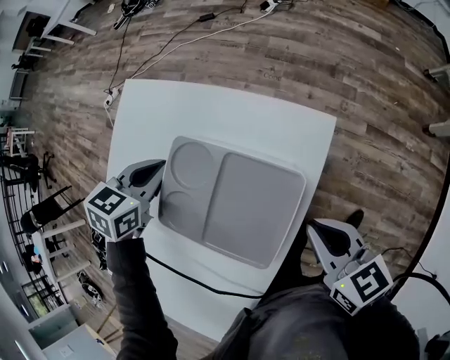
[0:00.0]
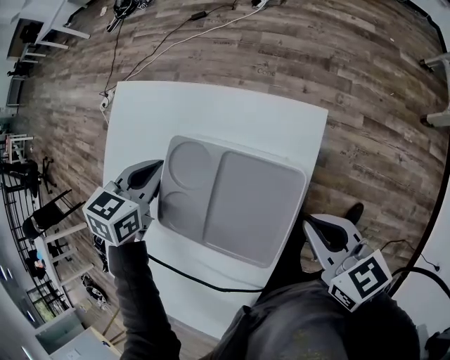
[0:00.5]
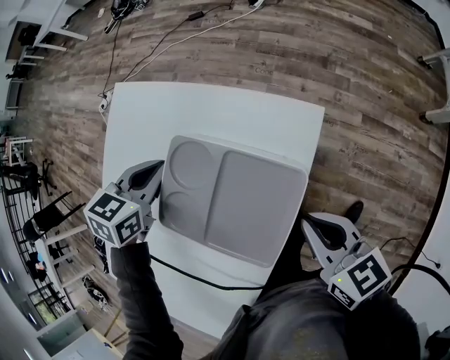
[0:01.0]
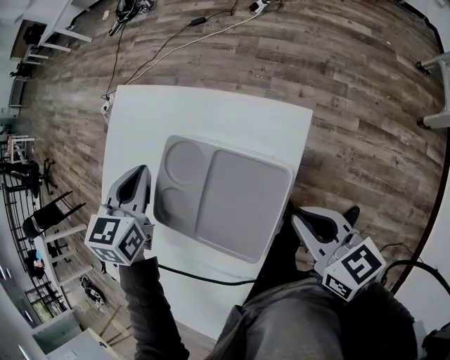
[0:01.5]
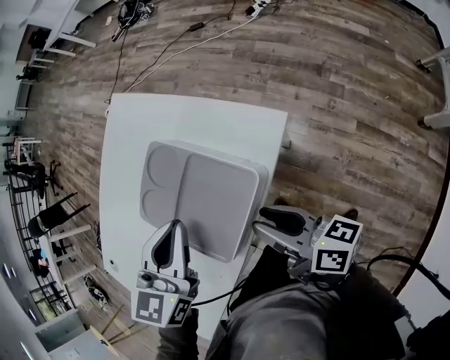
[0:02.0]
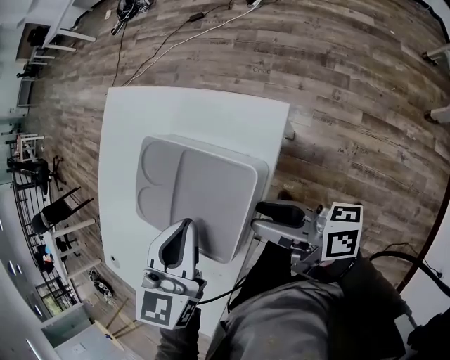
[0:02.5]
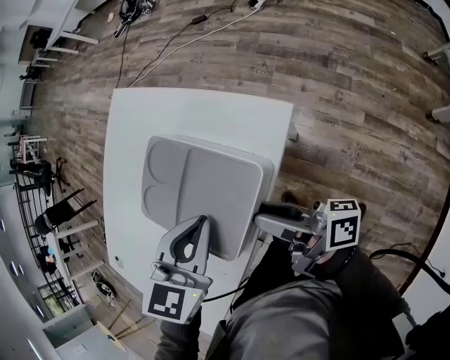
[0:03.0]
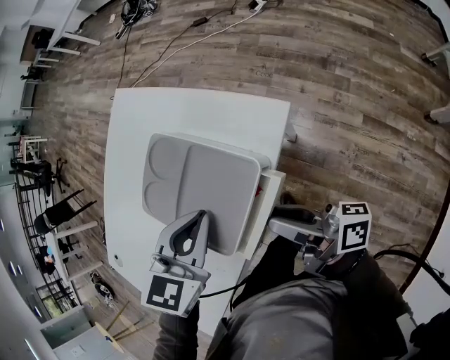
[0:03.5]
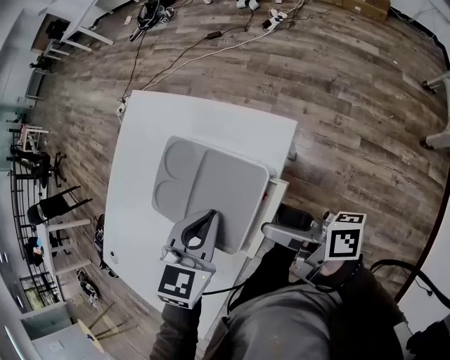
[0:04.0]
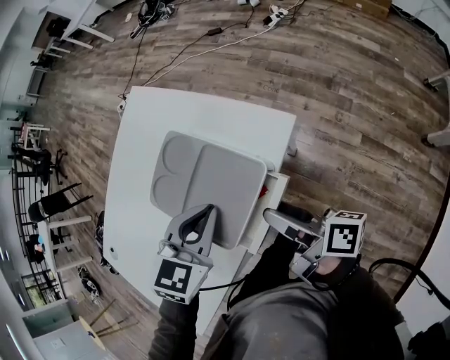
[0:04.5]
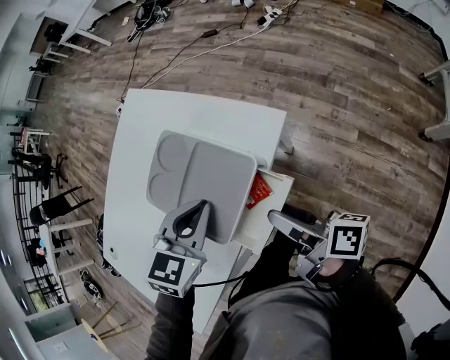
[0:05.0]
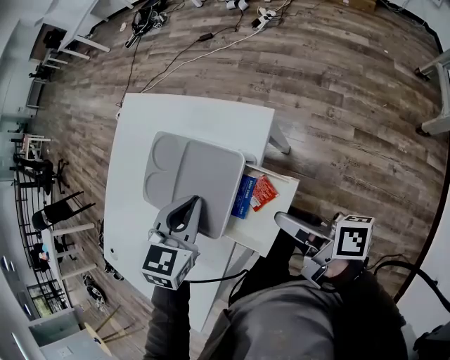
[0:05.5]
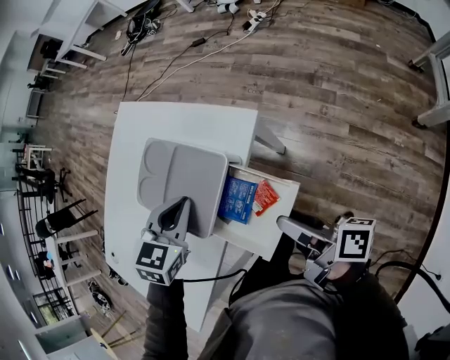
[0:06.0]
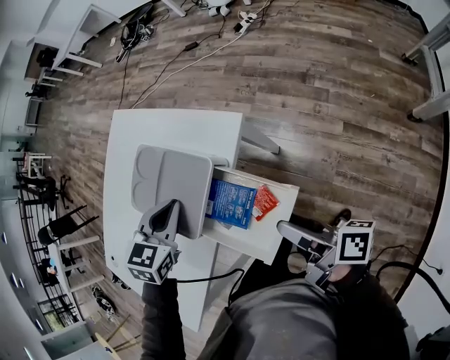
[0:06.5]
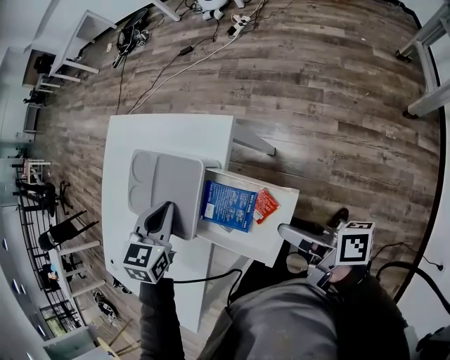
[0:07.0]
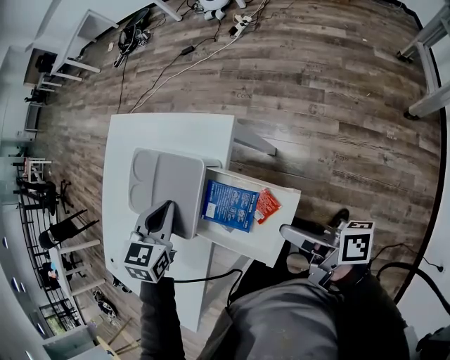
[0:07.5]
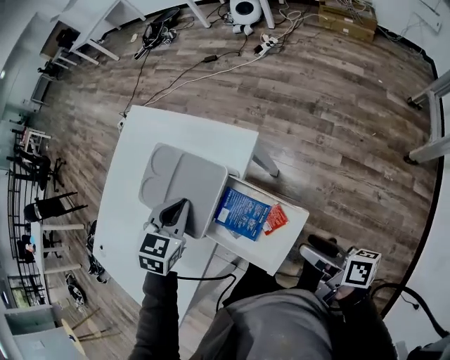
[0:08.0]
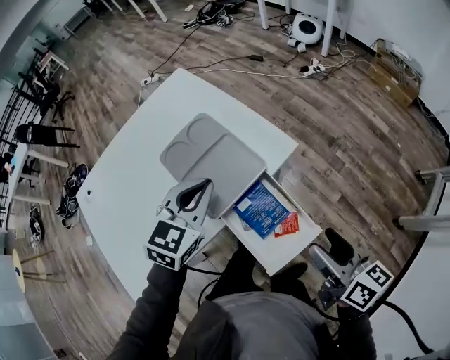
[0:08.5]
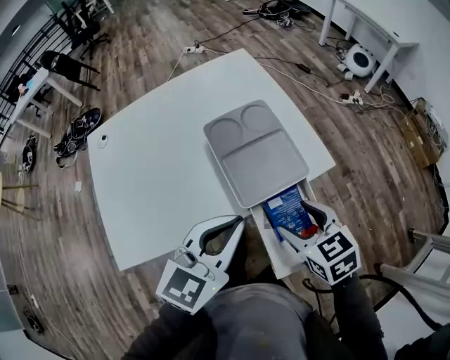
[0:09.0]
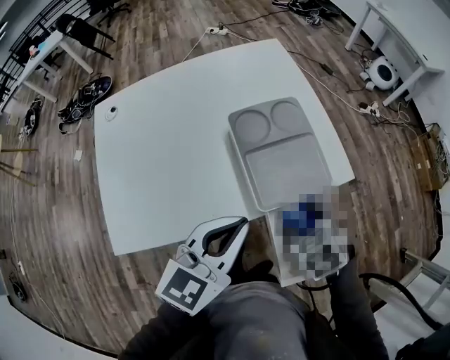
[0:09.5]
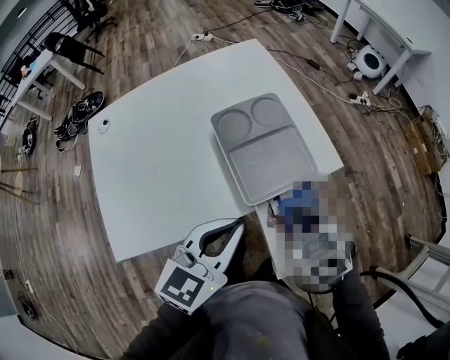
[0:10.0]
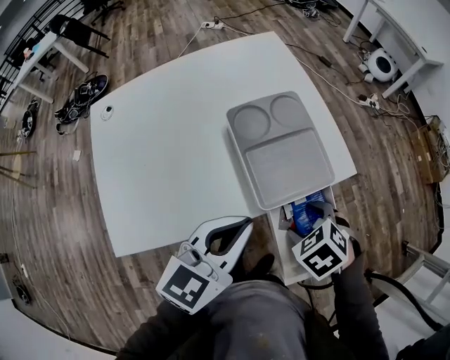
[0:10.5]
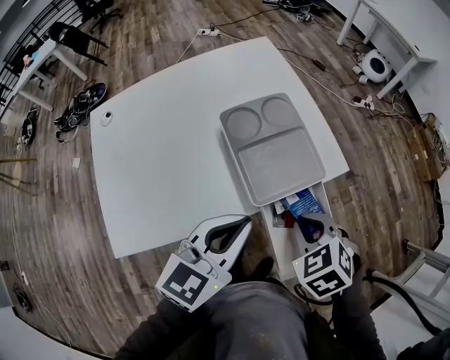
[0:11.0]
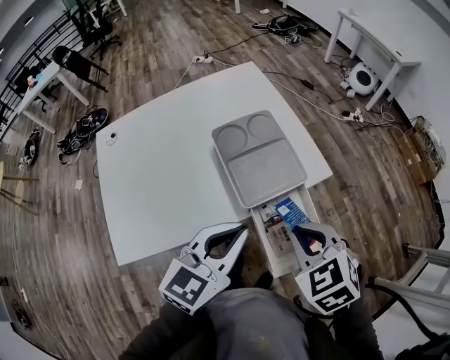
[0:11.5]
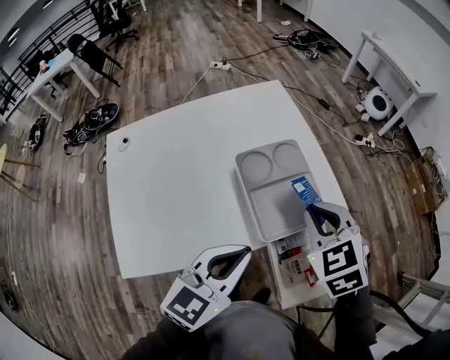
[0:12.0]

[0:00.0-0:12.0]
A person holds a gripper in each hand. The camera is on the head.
0:00.0 to 0:02.0: The right gripper turns by some 40 degrees, and opens its fingers; the left gripper goes some 20 cm backward, to the right and upward, and changes its angle by roughly 30 degrees.
0:02.0 to 0:04.0: The right gripper opens. The left gripper moves about 5 cm.
0:04.0 to 0:06.0: The right gripper is displaced to the right and backward by about 10 cm.
0:06.0 to 0:08.0: The right gripper moves backward and to the right, approximately 10 cm.
0:08.0 to 0:10.0: The right gripper moves forward and to the left, roughly 20 cm, twists approximately 90 degrees counterclockwise, seen from behind, and closes; the left gripper goes about 15 cm backward and upward, and changes its angle by roughly 40 degrees.
0:10.0 to 0:12.0: The right gripper heads upward and forward, covering approximately 15 cm, and opens, then closes once more.

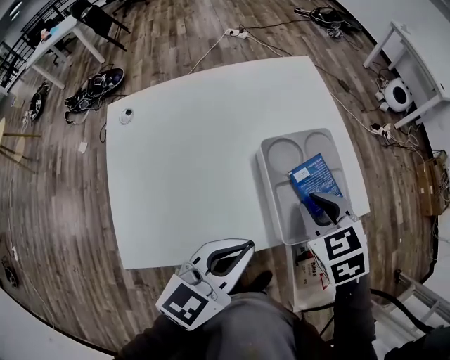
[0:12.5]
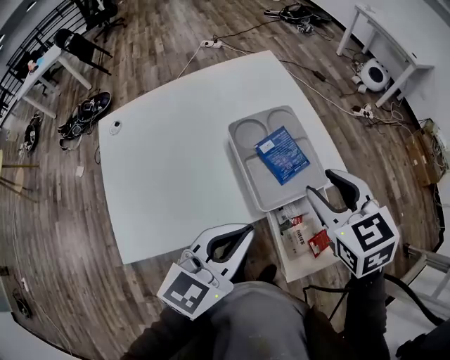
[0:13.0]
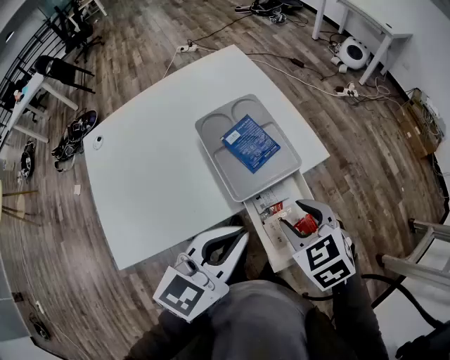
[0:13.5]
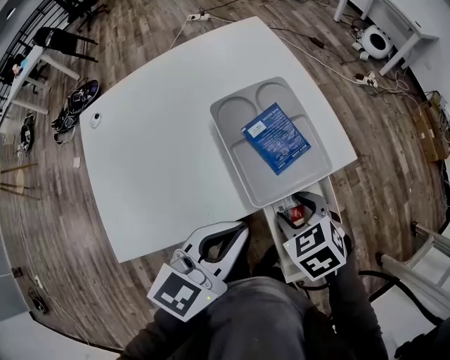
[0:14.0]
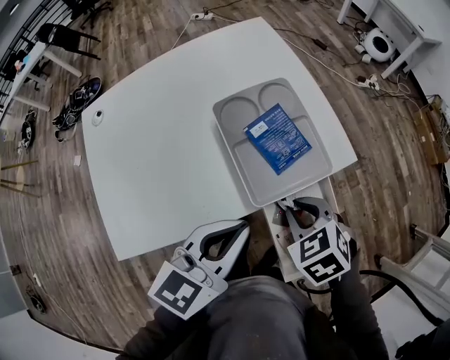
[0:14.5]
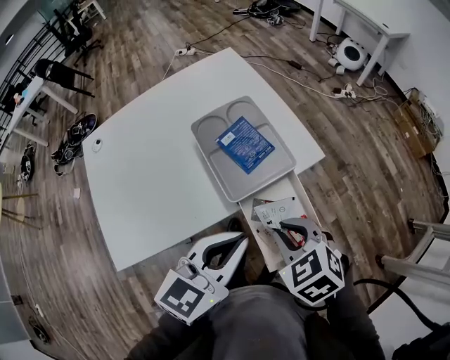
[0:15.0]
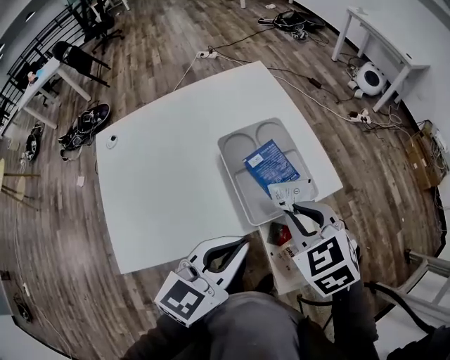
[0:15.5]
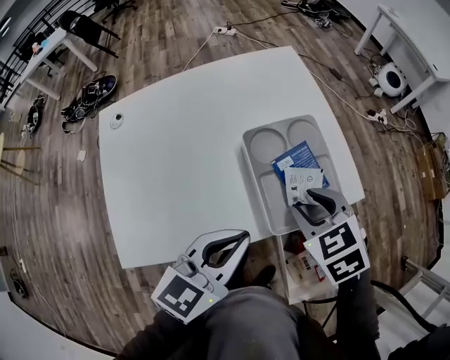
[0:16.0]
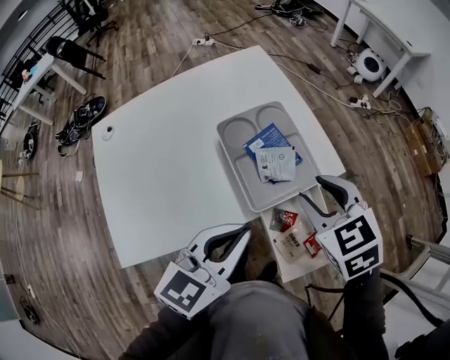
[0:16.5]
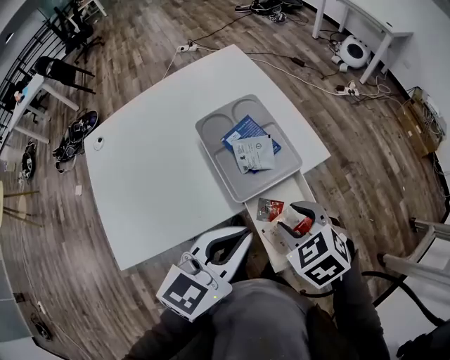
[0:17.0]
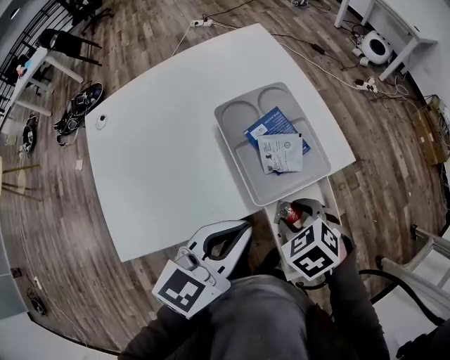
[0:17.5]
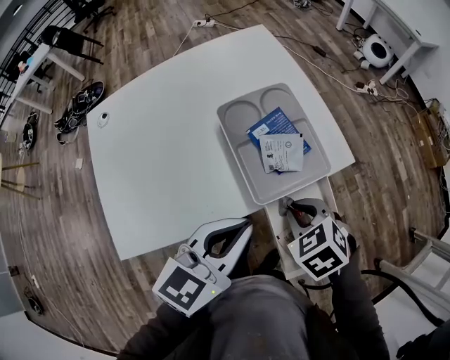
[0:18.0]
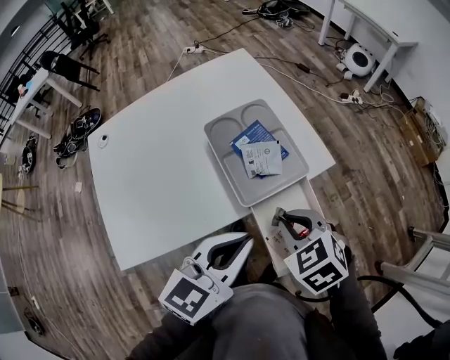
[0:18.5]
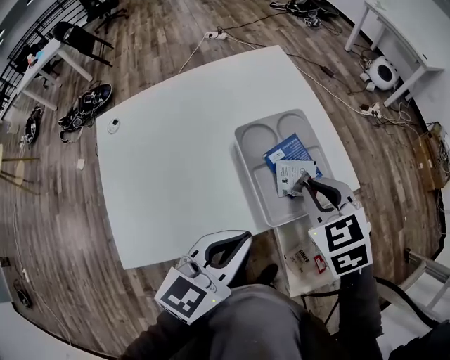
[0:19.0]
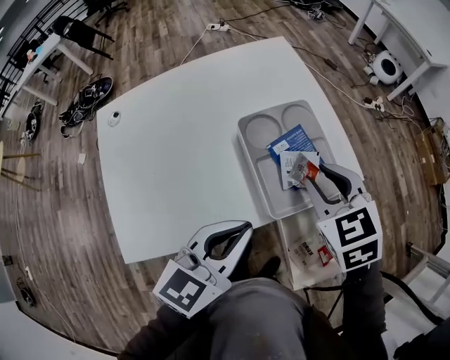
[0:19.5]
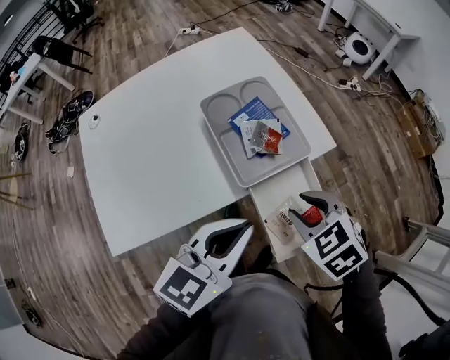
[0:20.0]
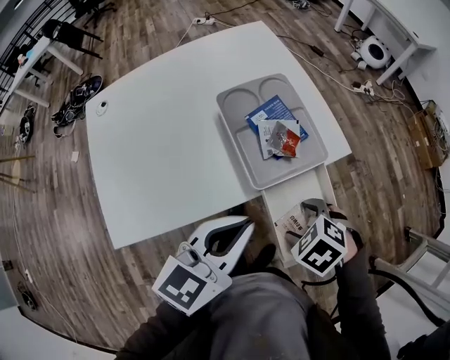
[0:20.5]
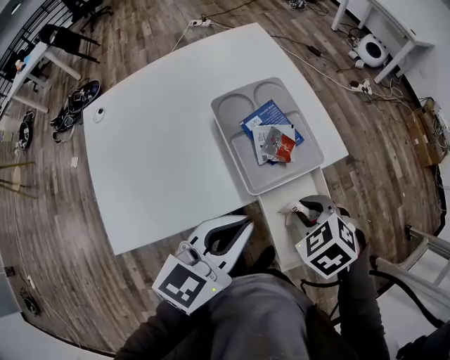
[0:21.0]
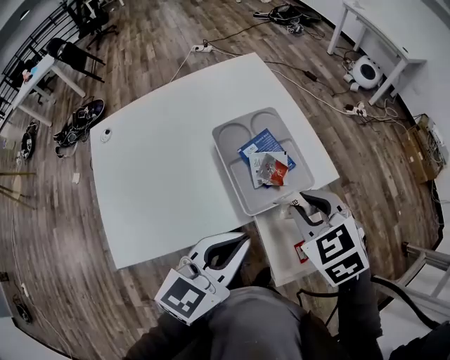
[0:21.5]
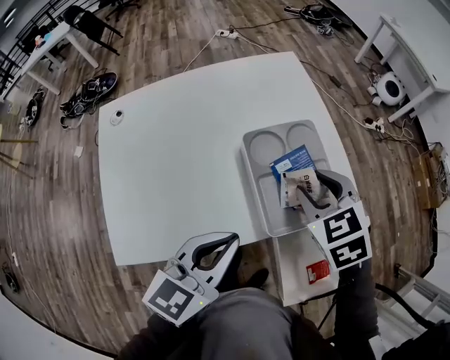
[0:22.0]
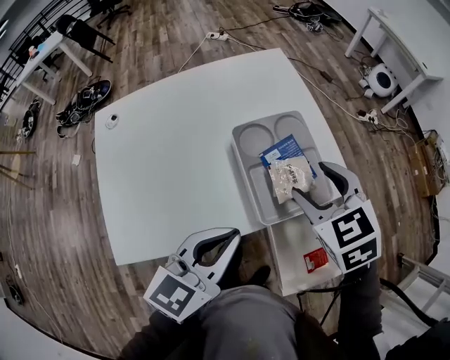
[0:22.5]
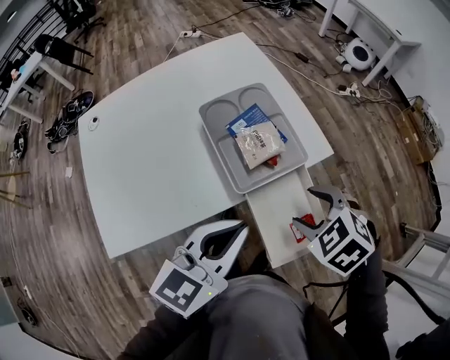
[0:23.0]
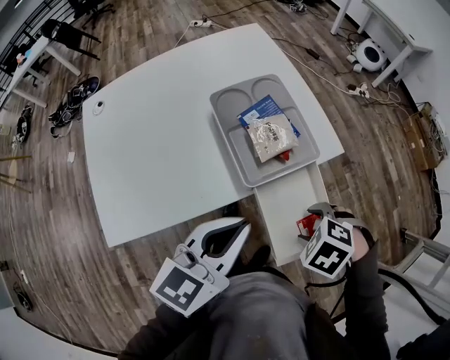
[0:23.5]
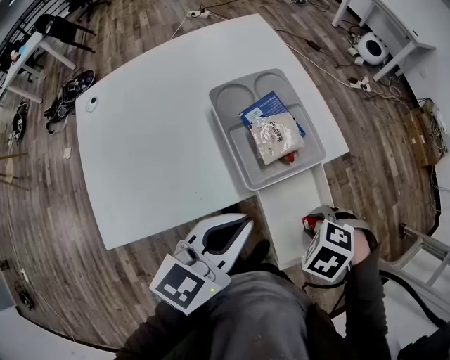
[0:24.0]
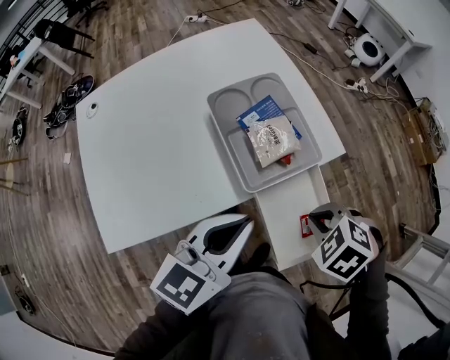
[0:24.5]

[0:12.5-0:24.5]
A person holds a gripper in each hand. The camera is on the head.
0:12.5 to 0:14.5: The right gripper goes roughly 15 cm backward, to the right and downward, and opens and closes again; the left gripper shifts roughly 5 cm to the right.
0:14.5 to 0:16.5: The right gripper travels upward by roughly 10 cm, reaches some 10 cm forward, then returns, and opens; the left gripper goes left and right, roughly 10 cm each way, reversing 2 times.
0:16.5 to 0:18.5: The right gripper heads backward and downward, covering about 10 cm, and closes up.
0:18.5 to 0:20.5: The right gripper shifts some 10 cm downward, swivels approximately 30 degrees, and opens.
0:20.5 to 0:22.5: The left gripper moves some 5 cm. The right gripper shifts by roughly 25 cm, angles its fingers upward, by roughly 30 degrees, and closes, then reopens.
0:22.5 to 0:24.5: The left gripper changes place by approximately 5 cm. Meanwhile the right gripper shifts by roughly 20 cm, angles its fingers downward, by some 30 degrees, and closes up.

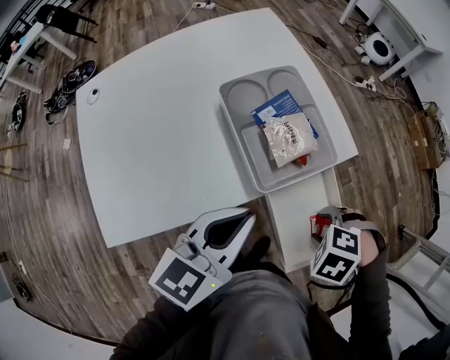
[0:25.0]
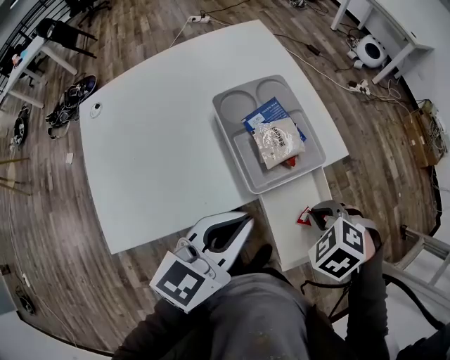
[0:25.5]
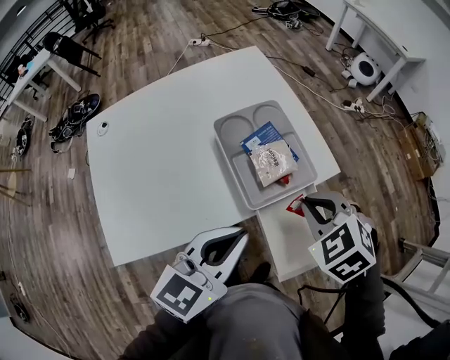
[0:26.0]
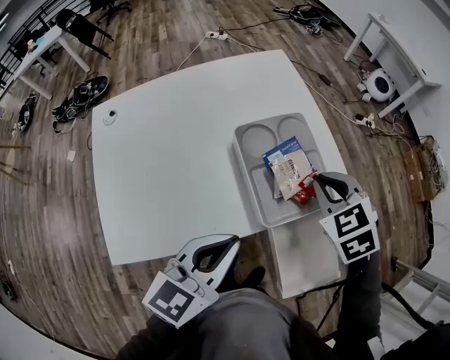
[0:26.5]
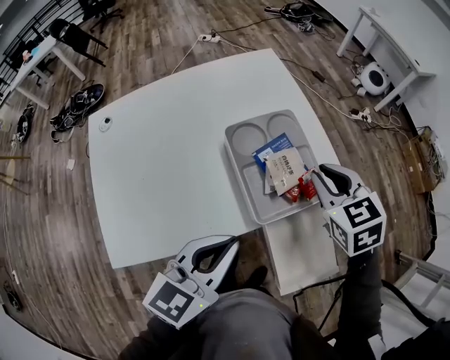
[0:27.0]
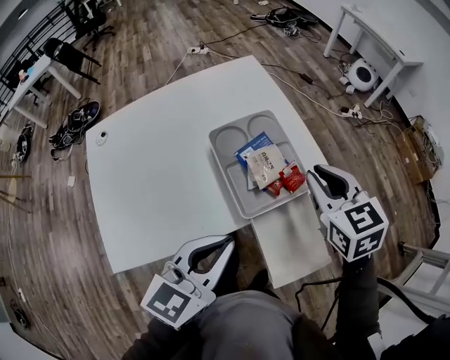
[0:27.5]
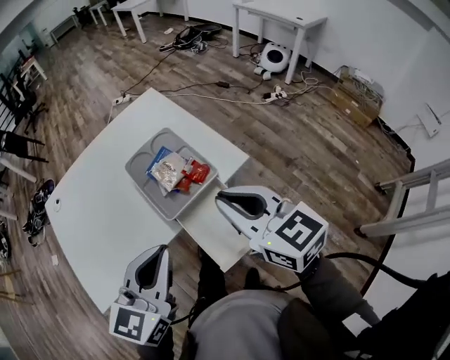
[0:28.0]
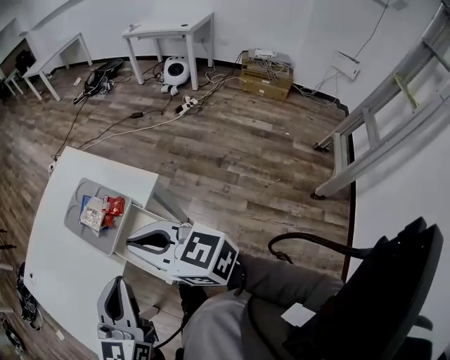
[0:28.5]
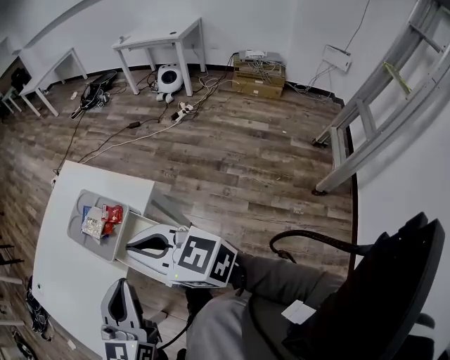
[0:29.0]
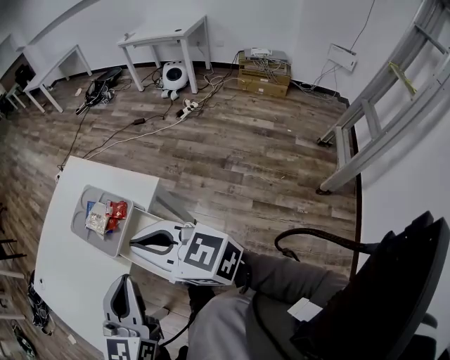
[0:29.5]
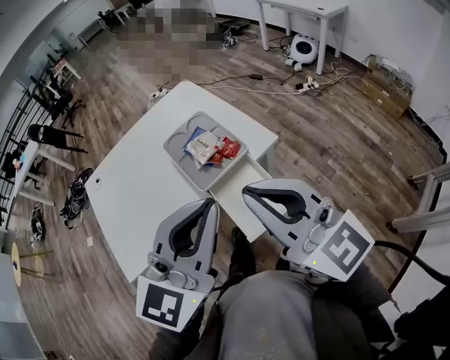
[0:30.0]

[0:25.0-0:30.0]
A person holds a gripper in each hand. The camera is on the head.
0:25.0 to 0:27.5: The right gripper shifts by some 25 cm, tips its fingers upward by approximately 60 degrees, and closes its fingers.
0:27.5 to 0:30.0: The left gripper travels to the right, upward and backward by some 15 cm, and turns by roughly 30 degrees; the right gripper shifts roughly 25 cm backward and upward, and points its fingers about 40 degrees further upward.
